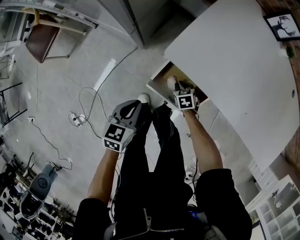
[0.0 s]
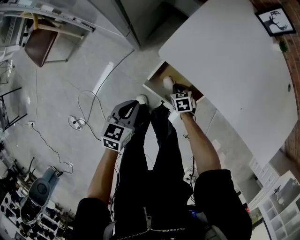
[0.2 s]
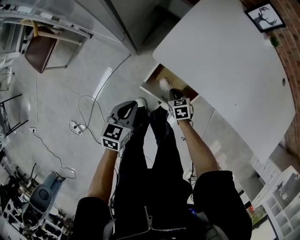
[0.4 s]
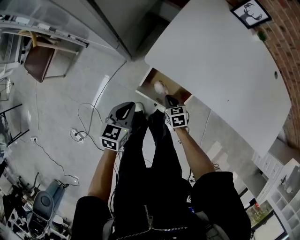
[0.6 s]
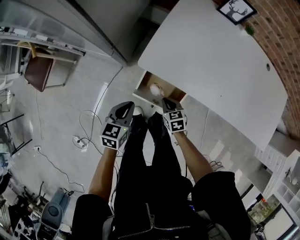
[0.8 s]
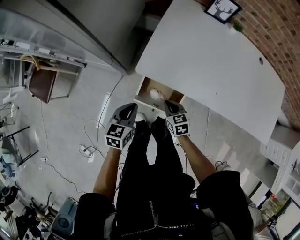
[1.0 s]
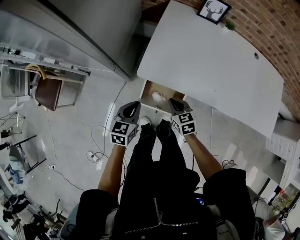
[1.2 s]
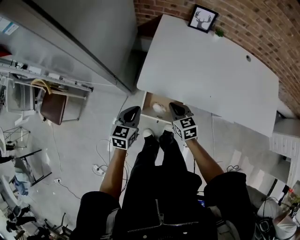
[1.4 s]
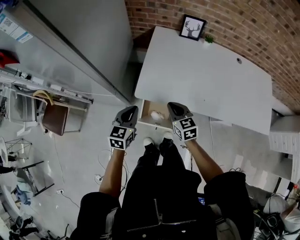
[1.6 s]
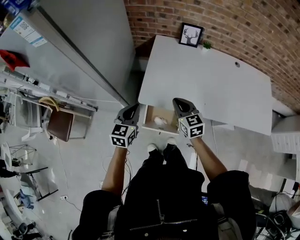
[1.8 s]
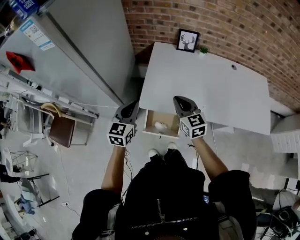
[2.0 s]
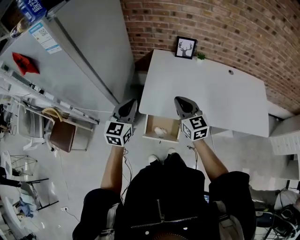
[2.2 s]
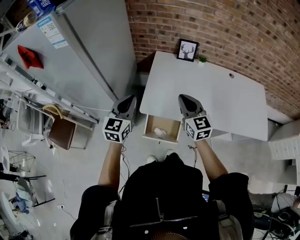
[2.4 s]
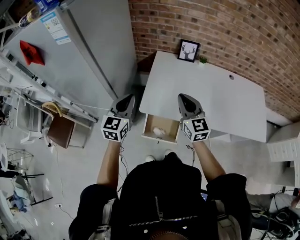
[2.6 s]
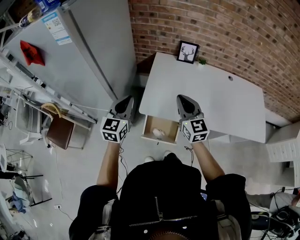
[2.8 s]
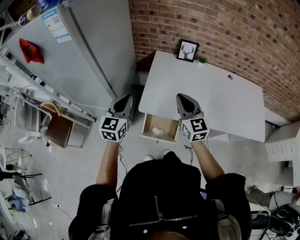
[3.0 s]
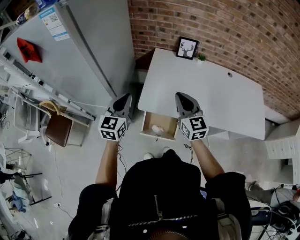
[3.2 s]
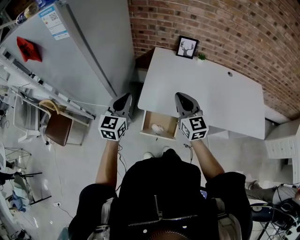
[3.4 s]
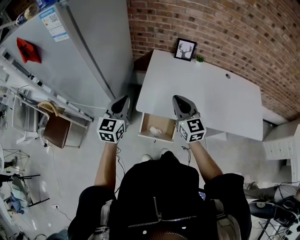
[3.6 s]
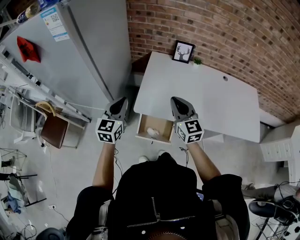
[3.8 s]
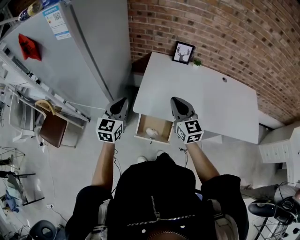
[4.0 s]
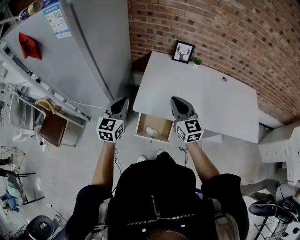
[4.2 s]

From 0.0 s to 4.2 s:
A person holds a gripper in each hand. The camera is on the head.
From 0.0 s to 1.4 s: The right gripper moves upward, some 35 cm, and tips its fingers upward by approximately 30 degrees. Meanwhile the left gripper is displaced upward by roughly 15 cm.
From 1.4 s to 2.8 s: The grippers both shift upward by roughly 25 cm. The right gripper angles its fingers upward, by some 30 degrees. Meanwhile the left gripper swivels roughly 30 degrees.
From 2.8 s to 4.2 s: The grippers make only small movements.

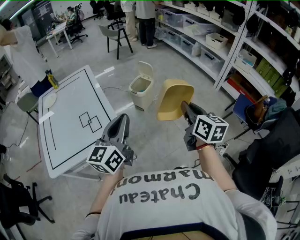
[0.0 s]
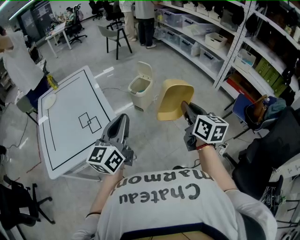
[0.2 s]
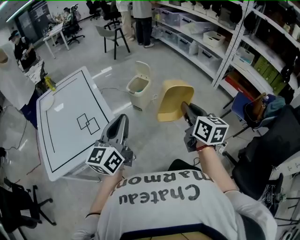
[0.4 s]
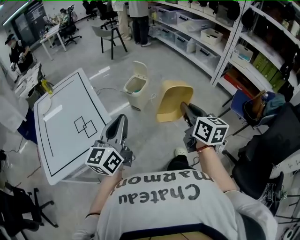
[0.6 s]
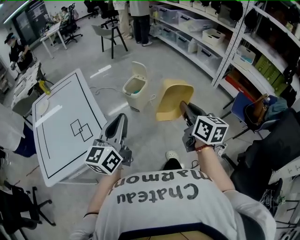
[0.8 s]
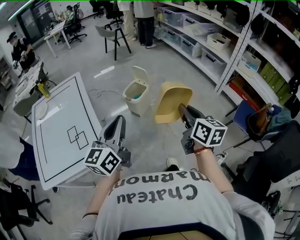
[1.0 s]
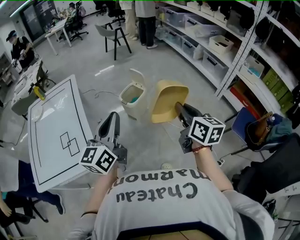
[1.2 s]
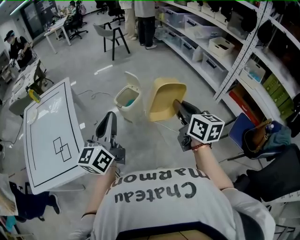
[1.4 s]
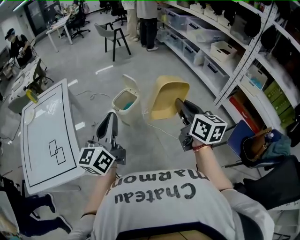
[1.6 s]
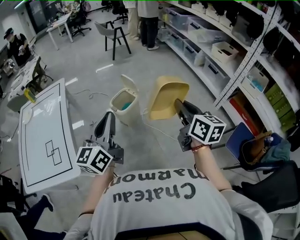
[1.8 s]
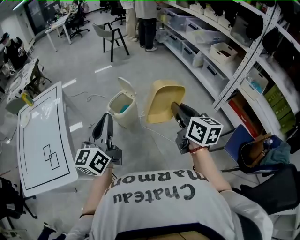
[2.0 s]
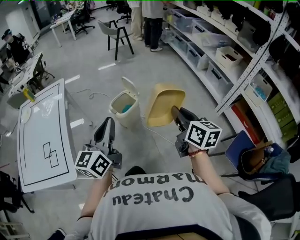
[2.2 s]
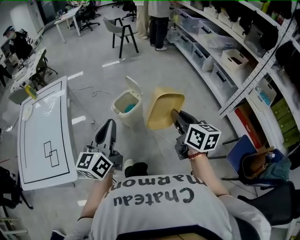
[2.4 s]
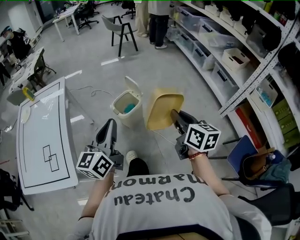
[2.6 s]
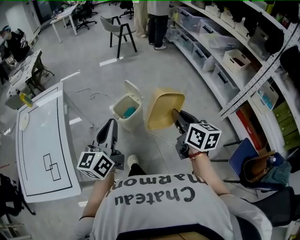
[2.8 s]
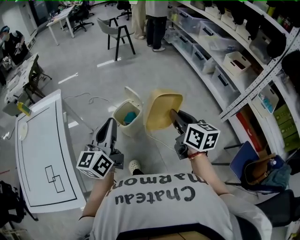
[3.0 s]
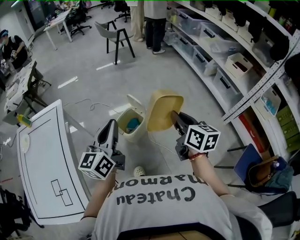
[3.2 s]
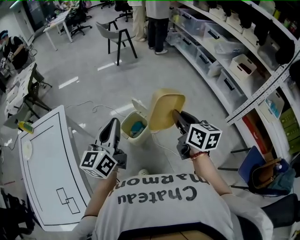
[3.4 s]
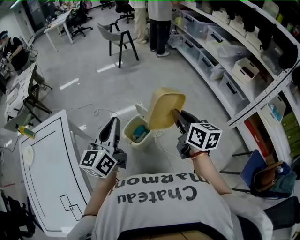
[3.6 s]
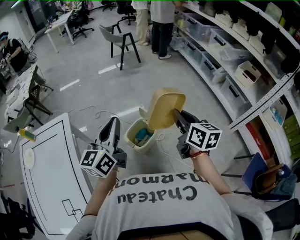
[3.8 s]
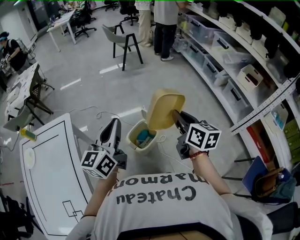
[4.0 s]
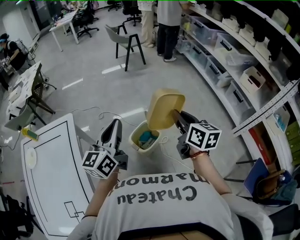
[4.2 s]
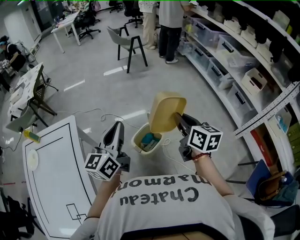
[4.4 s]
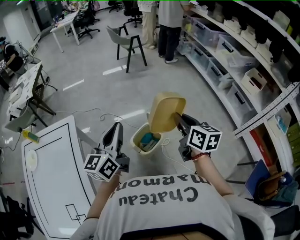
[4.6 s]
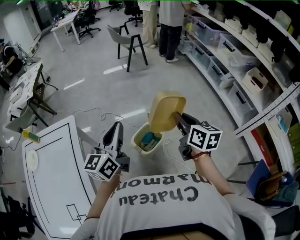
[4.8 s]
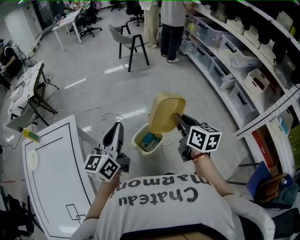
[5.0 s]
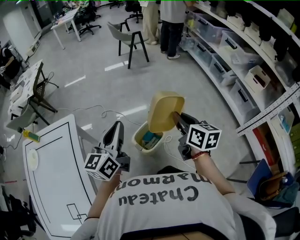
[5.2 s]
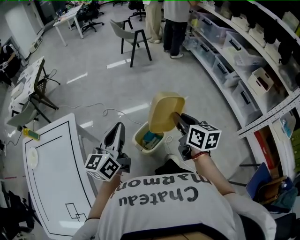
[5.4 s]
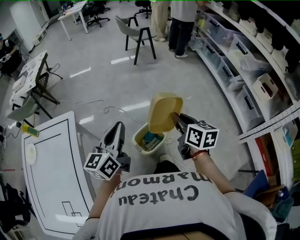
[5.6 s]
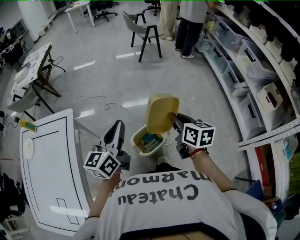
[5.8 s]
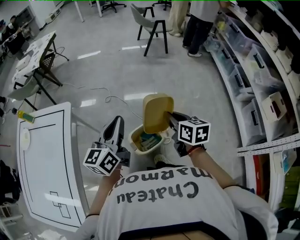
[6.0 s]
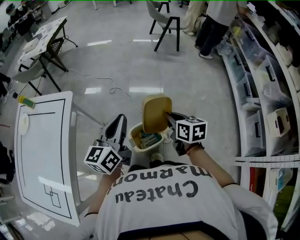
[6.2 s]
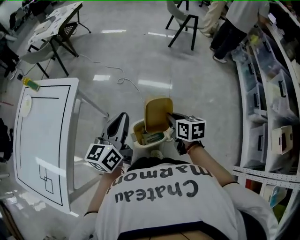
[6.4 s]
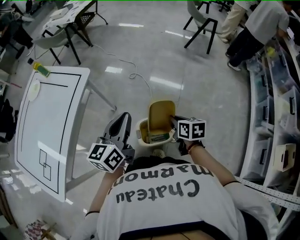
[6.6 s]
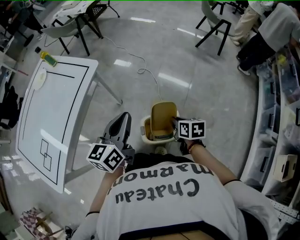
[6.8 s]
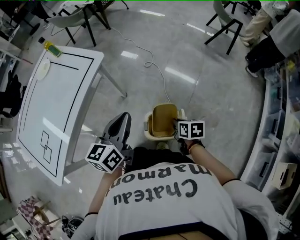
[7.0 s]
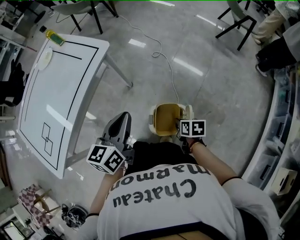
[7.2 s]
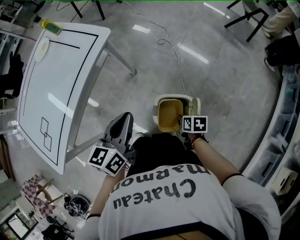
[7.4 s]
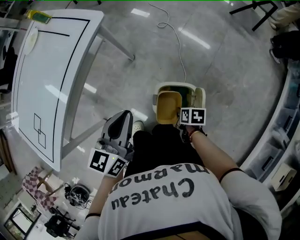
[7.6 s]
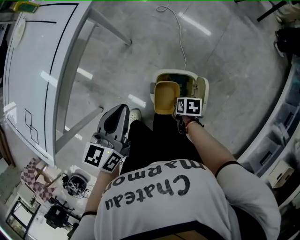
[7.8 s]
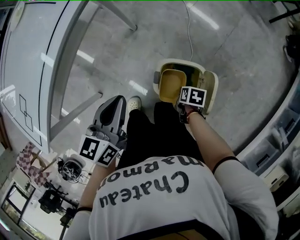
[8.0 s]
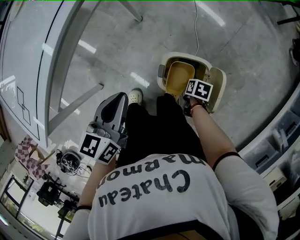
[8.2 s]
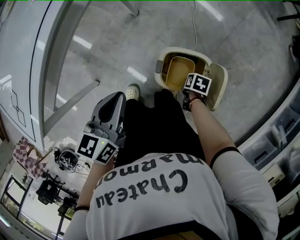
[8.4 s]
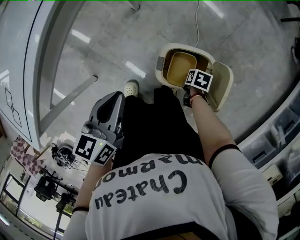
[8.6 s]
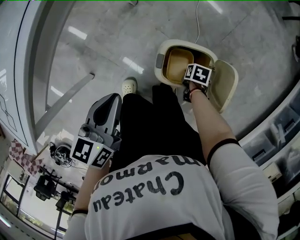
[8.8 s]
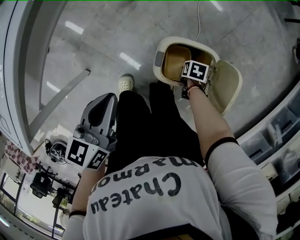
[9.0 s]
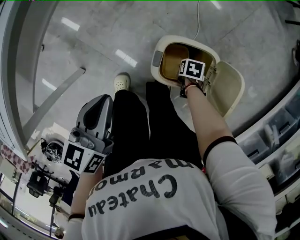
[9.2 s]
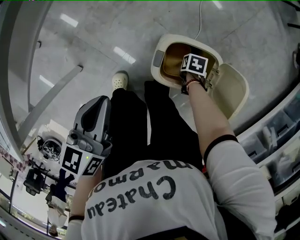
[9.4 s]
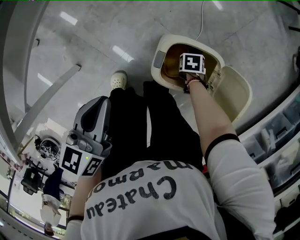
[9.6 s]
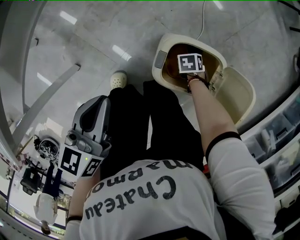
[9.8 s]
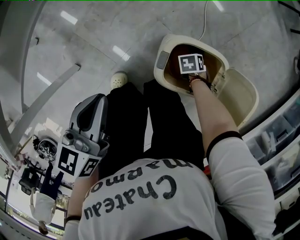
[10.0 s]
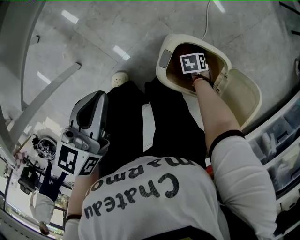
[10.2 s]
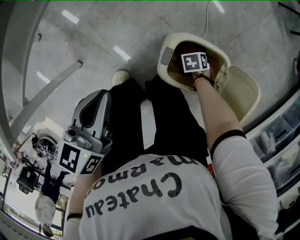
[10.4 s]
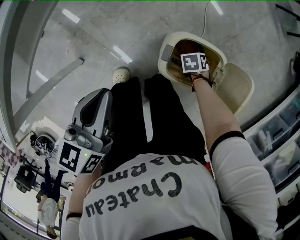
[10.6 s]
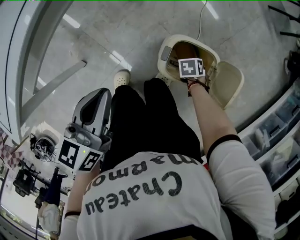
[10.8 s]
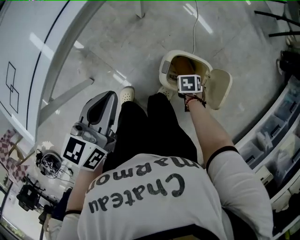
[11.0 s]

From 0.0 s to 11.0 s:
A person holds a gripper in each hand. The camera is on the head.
From 0.0 s to 1.6 s: Both grippers travel together forward and to the right, roughly 35 cm.
From 1.6 s to 3.2 s: The grippers both shift forward by about 25 cm.
From 3.2 s to 4.8 s: Both grippers travel together forward and to the left, about 20 cm.
From 4.8 s to 6.2 s: The right gripper moves forward and downward, roughly 20 cm, and changes its angle by roughly 30 degrees, while the left gripper travels forward and downward by approximately 15 cm, and swivels roughly 20 degrees.
From 6.2 s to 7.8 s: The right gripper moves downward, approximately 35 cm, and tilts its fingers roughly 30 degrees downward; the left gripper moves downward, about 20 cm, and rotates some 30 degrees.
From 7.8 s to 9.4 s: Both grippers move downward, about 20 cm. The right gripper swivels roughly 20 degrees.
From 9.4 s to 11.0 s: The two grippers go about 15 cm upward. The right gripper turns by approximately 20 degrees.

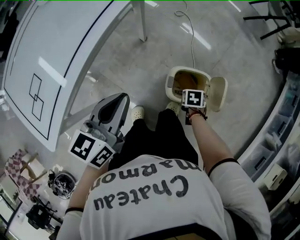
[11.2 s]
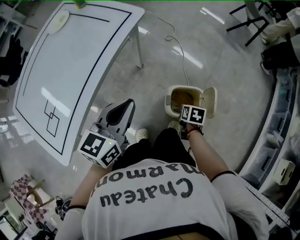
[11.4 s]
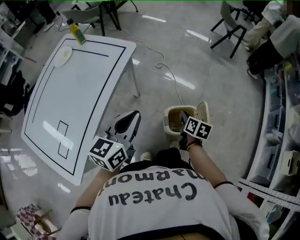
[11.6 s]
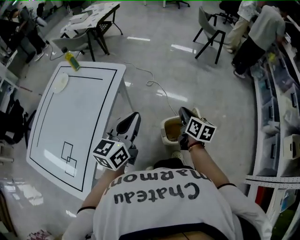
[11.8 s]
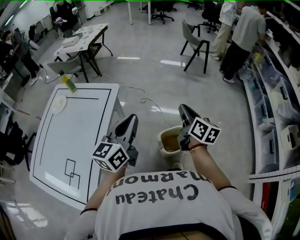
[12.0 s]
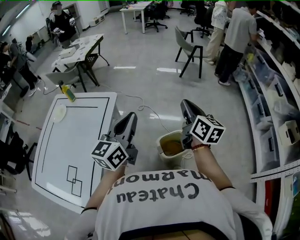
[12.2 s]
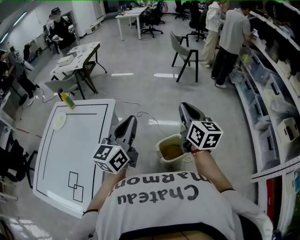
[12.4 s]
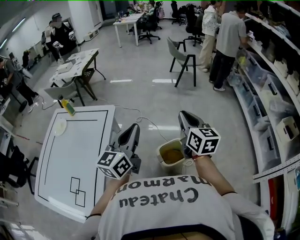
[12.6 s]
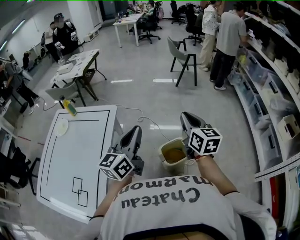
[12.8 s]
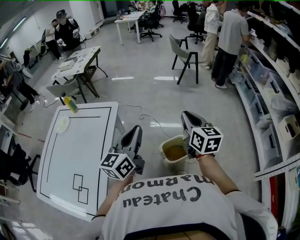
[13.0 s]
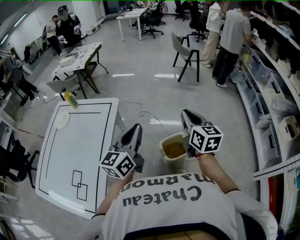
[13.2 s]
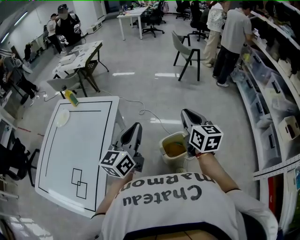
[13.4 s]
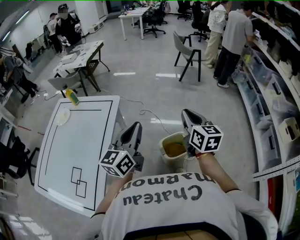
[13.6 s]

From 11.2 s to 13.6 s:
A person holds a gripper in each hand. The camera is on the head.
From 11.2 s to 12.4 s: The right gripper travels upward by about 60 cm, and tilts its fingers about 80 degrees upward, while the left gripper heads upward, covering roughly 25 cm, and changes its angle by about 40 degrees.
From 12.4 s to 13.6 s: There are only small adjustments of the grippers.

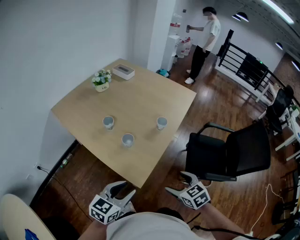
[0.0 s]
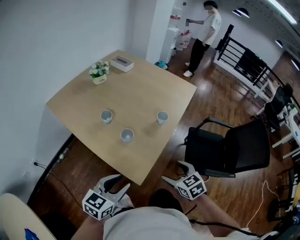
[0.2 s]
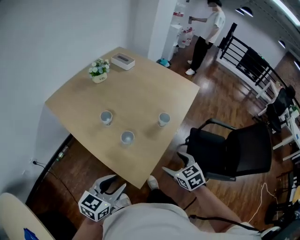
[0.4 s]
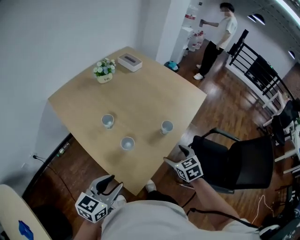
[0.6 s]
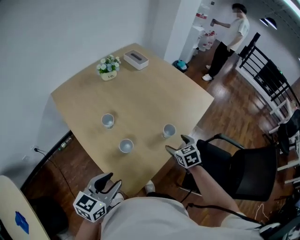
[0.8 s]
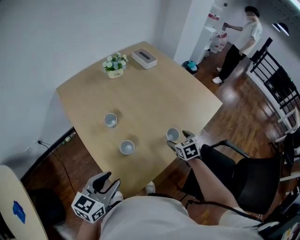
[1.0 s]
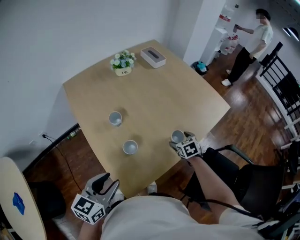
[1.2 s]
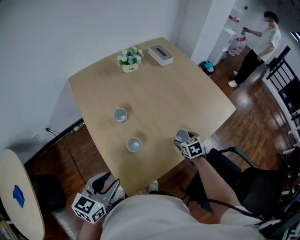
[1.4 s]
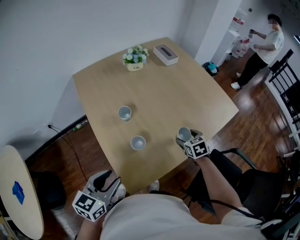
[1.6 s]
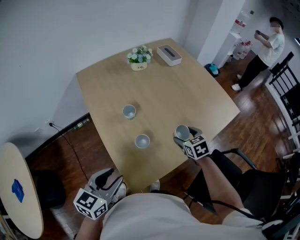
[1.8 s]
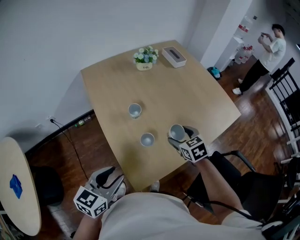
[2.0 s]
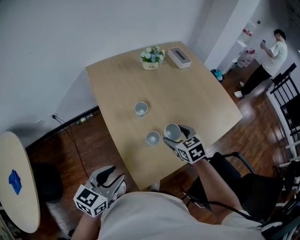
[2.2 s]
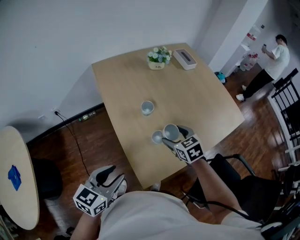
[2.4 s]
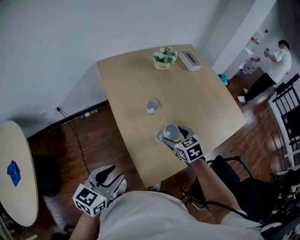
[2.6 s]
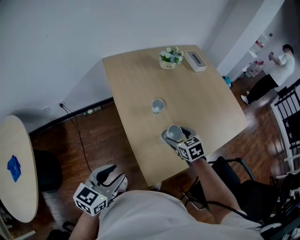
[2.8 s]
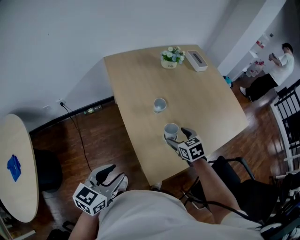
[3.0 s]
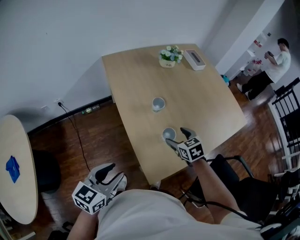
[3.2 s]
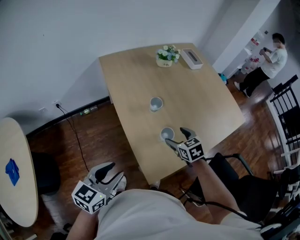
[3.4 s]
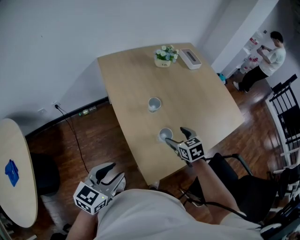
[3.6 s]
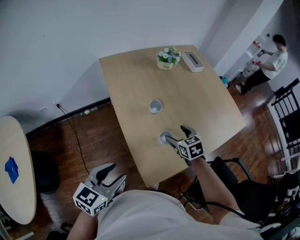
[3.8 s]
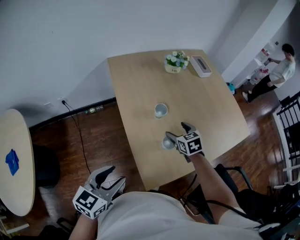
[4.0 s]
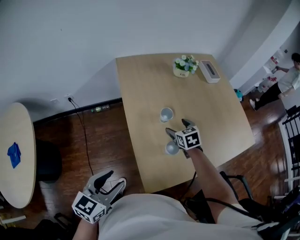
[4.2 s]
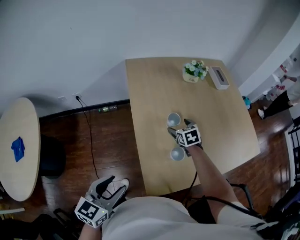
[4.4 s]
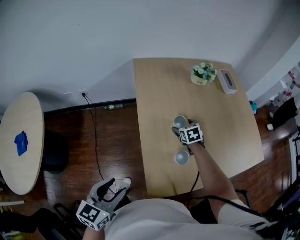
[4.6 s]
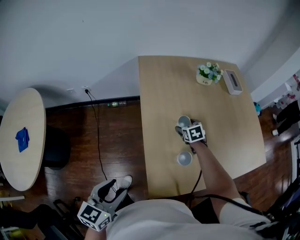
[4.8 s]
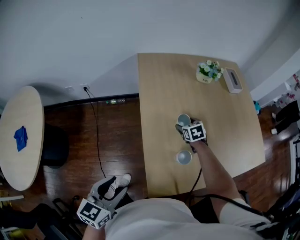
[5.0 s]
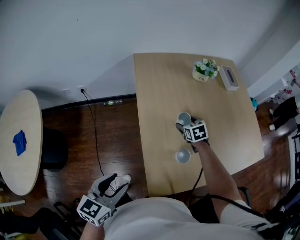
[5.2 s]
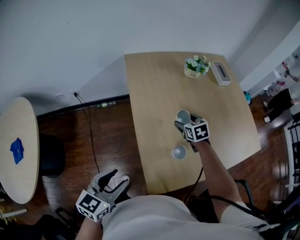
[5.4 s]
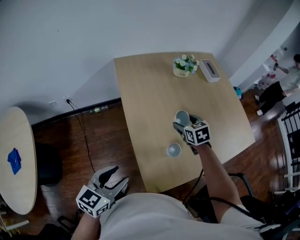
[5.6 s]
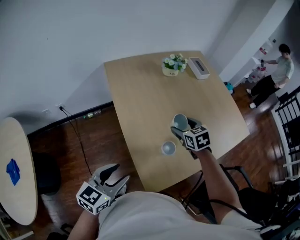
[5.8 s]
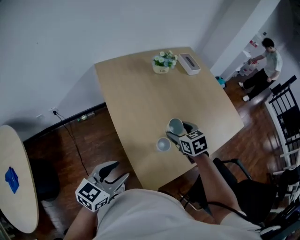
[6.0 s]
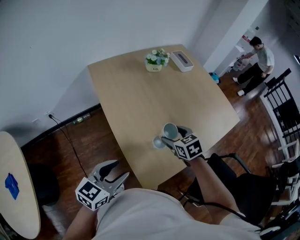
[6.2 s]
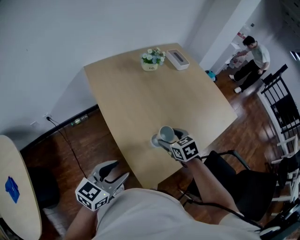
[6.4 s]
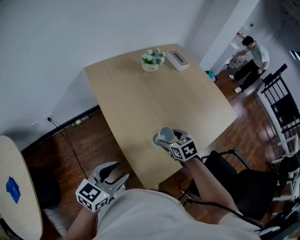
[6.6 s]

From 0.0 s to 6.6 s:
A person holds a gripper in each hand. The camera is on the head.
From 0.0 s to 1.6 s: The left gripper shifts roughly 15 cm forward, and swivels about 30 degrees; the right gripper goes roughly 40 cm forward.
From 1.6 s to 3.2 s: The left gripper moves to the left and backward, approximately 15 cm. The right gripper shifts roughly 25 cm to the left.
From 3.2 s to 5.0 s: The right gripper travels forward and downward by roughly 20 cm. Meanwhile the left gripper changes its angle by approximately 20 degrees.
From 5.0 s to 6.6 s: The left gripper is displaced forward by some 5 cm, and changes its angle by approximately 40 degrees. Meanwhile the right gripper shifts approximately 20 cm backward, upward and to the right.
